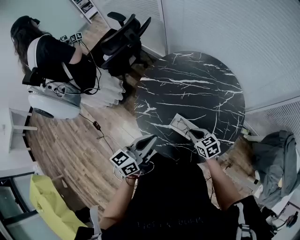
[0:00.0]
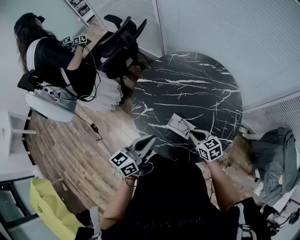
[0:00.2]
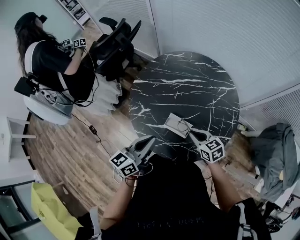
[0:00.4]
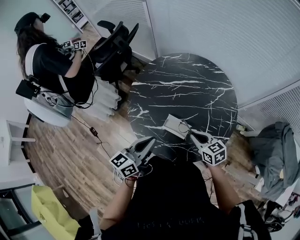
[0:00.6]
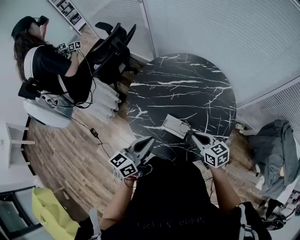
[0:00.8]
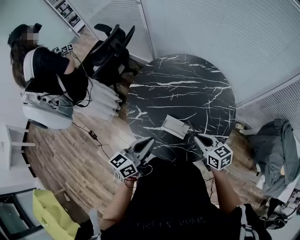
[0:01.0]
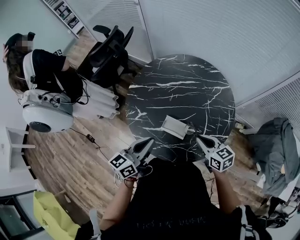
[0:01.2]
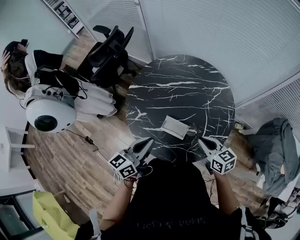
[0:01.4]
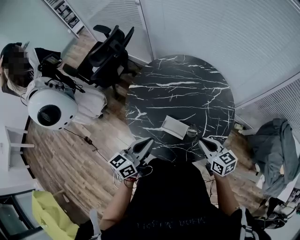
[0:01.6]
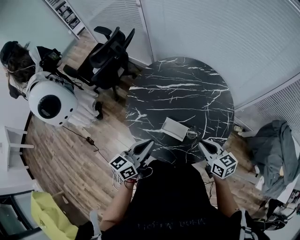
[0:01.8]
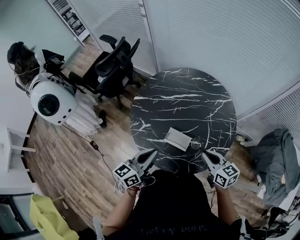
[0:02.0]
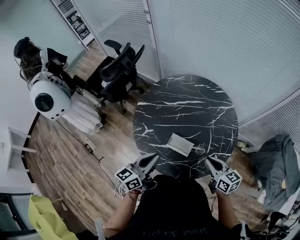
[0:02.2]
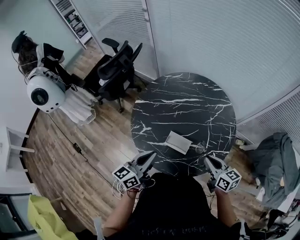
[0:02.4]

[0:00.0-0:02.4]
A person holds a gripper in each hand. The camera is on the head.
0:00.0 to 0:01.2: The right gripper goes approximately 10 cm upward and to the right, and swivels about 20 degrees.
0:01.2 to 0:02.4: The grippers stay close to where they were, moving slightly.

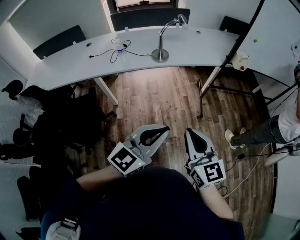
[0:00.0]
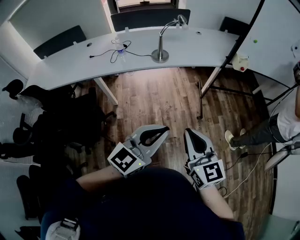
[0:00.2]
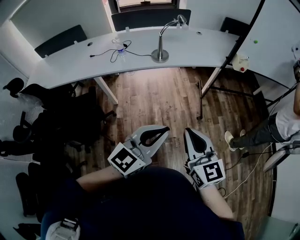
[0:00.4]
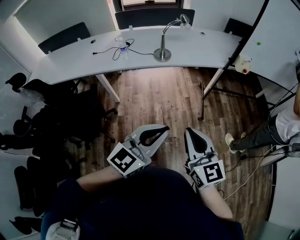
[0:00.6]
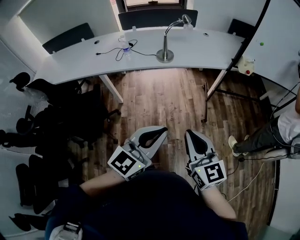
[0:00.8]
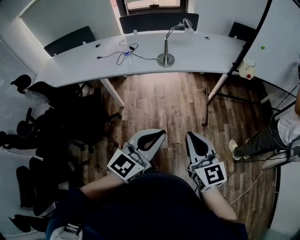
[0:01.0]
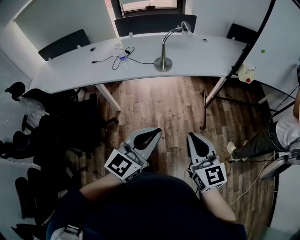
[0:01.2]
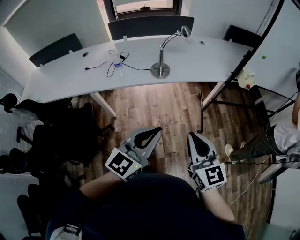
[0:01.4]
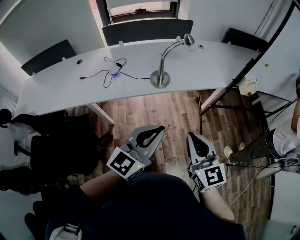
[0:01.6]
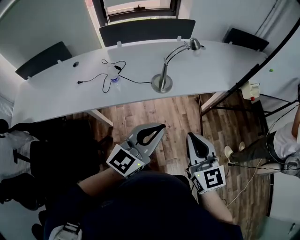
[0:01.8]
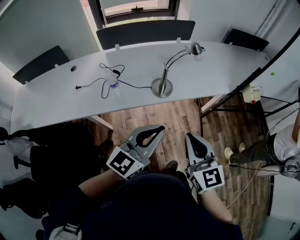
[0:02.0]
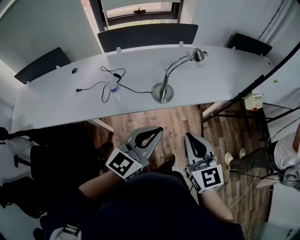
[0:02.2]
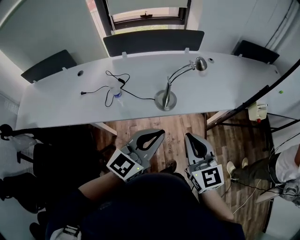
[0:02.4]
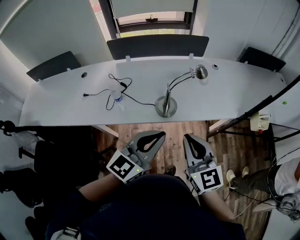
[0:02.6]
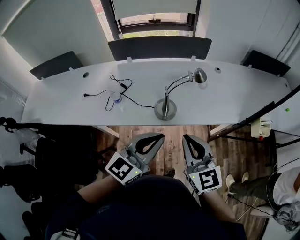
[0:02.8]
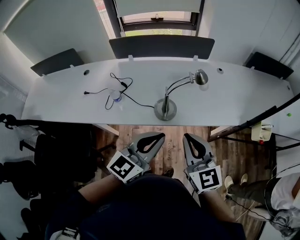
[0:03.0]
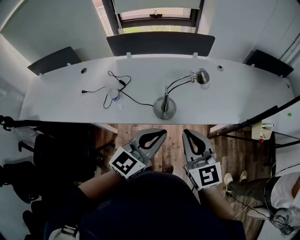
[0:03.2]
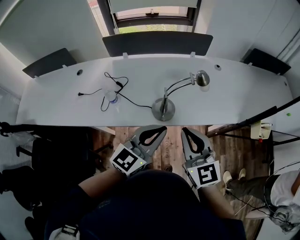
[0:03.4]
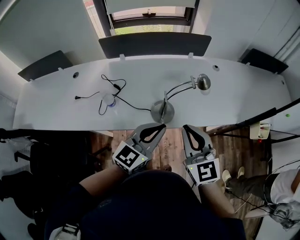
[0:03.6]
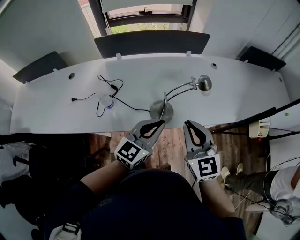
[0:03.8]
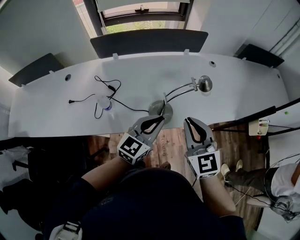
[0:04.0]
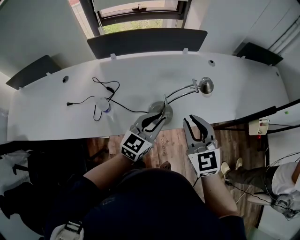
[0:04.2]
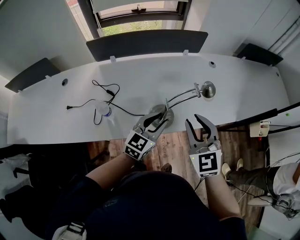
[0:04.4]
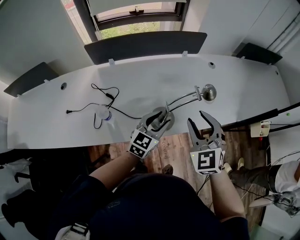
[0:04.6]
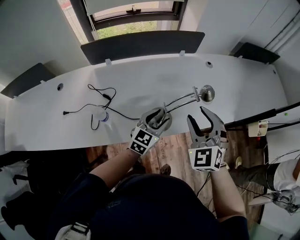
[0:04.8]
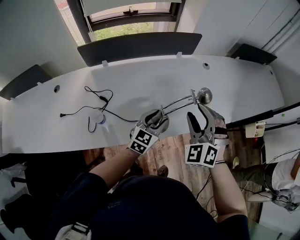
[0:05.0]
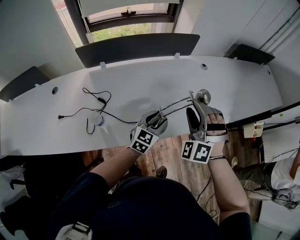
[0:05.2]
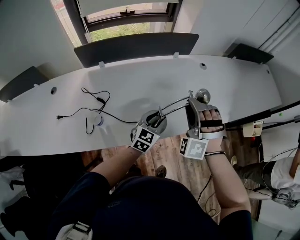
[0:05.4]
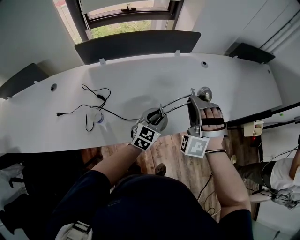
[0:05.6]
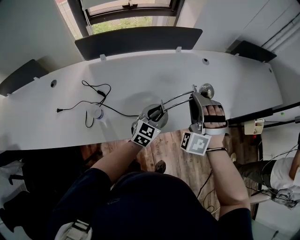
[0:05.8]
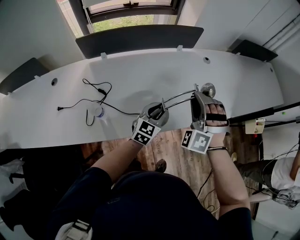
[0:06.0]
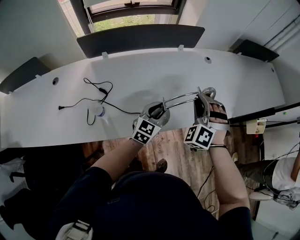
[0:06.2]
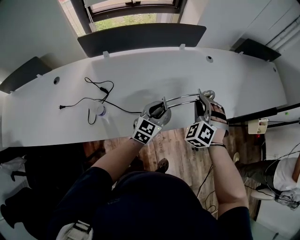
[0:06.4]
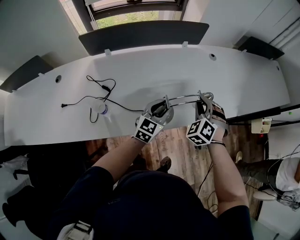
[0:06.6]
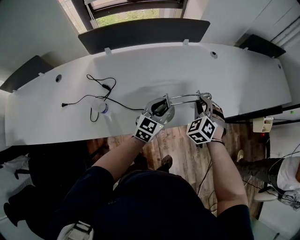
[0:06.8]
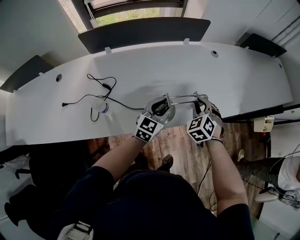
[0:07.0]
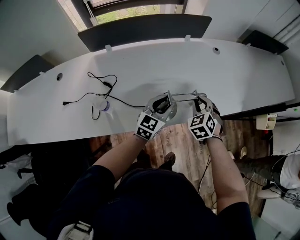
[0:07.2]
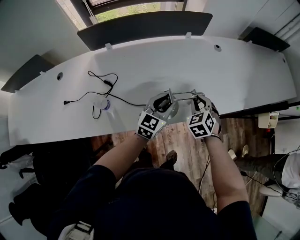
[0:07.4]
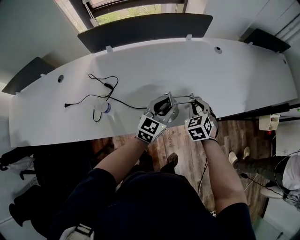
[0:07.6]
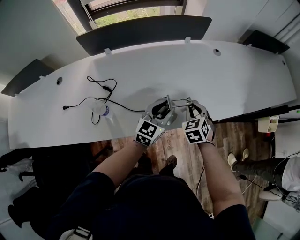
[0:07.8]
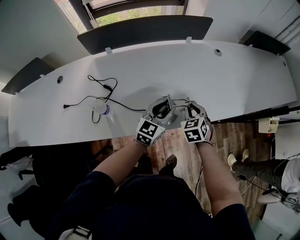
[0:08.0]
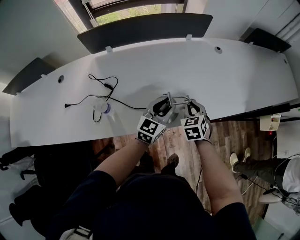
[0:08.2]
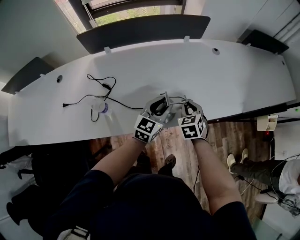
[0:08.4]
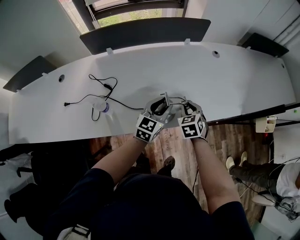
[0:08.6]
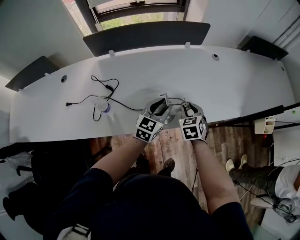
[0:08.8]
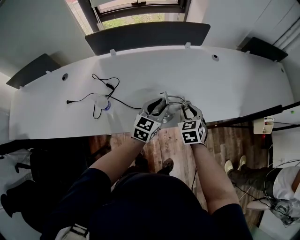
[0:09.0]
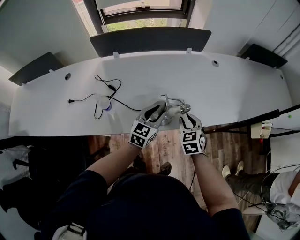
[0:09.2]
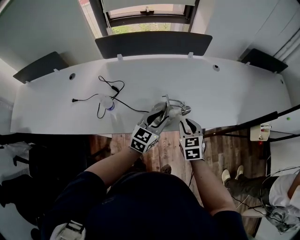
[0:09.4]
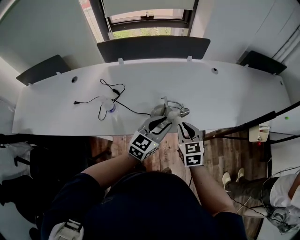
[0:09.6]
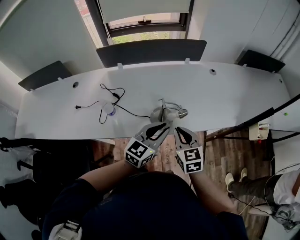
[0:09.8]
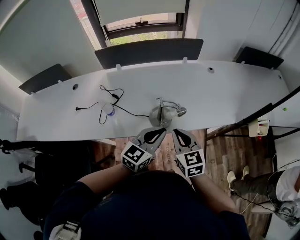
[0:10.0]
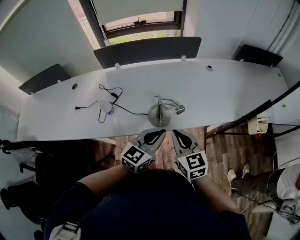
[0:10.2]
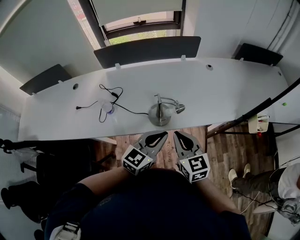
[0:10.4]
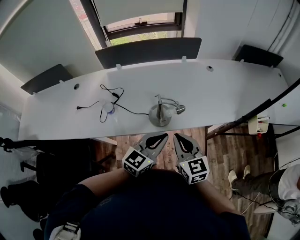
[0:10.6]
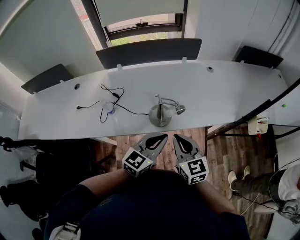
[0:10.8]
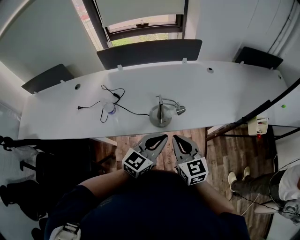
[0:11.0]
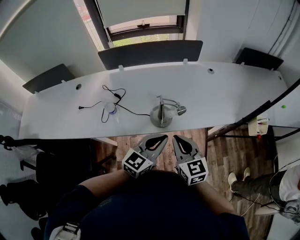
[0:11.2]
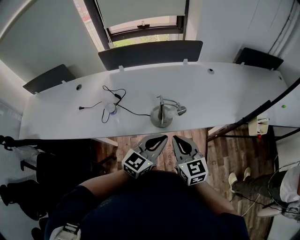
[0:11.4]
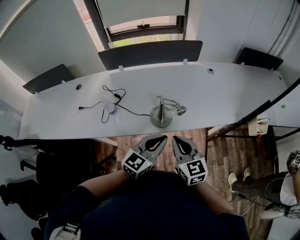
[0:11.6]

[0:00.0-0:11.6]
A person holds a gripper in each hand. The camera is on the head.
0:00.0 to 0:01.4: Both grippers move forward, approximately 15 cm.
0:01.4 to 0:02.8: Both grippers travel together forward, about 30 cm.
0:02.8 to 0:04.4: The right gripper travels forward by about 15 cm, swivels roughly 20 degrees, and opens; the left gripper is displaced forward and downward by approximately 25 cm, and opens up.
0:04.4 to 0:05.8: The left gripper travels forward and downward by roughly 10 cm. The right gripper is displaced forward by about 10 cm, rotates around the line of its fingers by some 60 degrees, counterclockwise from behind, and opens, then closes again.
0:05.8 to 0:07.2: The right gripper goes some 15 cm downward, and rolls clockwise, seen from behind, by approximately 40 degrees.
0:07.2 to 0:08.8: The right gripper changes its angle by roughly 20 degrees.
0:08.8 to 0:10.2: Both grippers travel together backward and upward, roughly 20 cm. The right gripper swivels about 40 degrees, and closes up. Meanwhile the left gripper closes its fingers.
0:10.2 to 0:11.6: The grippers make only small movements.

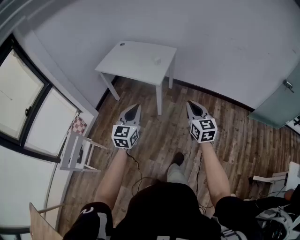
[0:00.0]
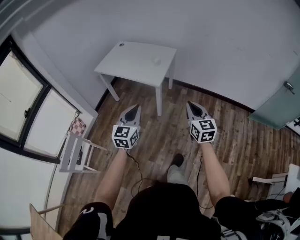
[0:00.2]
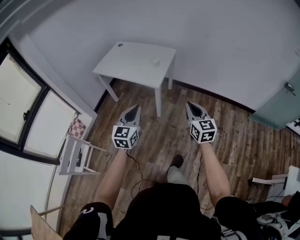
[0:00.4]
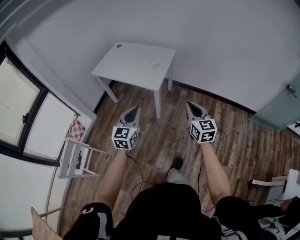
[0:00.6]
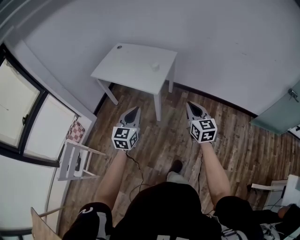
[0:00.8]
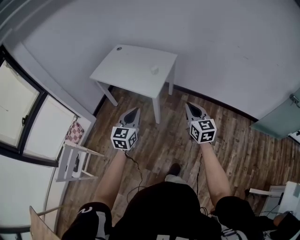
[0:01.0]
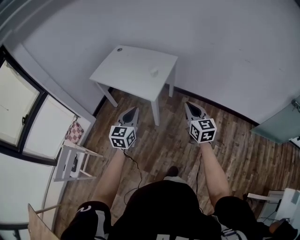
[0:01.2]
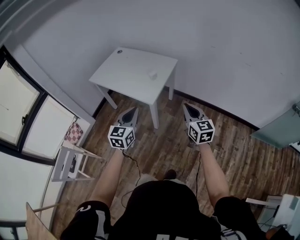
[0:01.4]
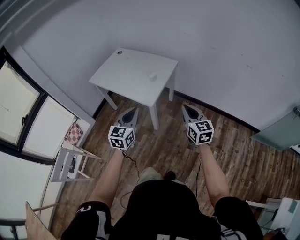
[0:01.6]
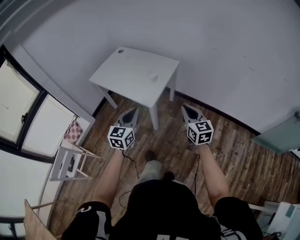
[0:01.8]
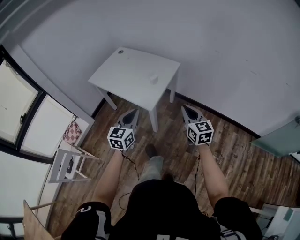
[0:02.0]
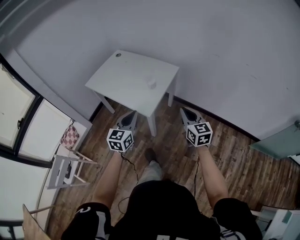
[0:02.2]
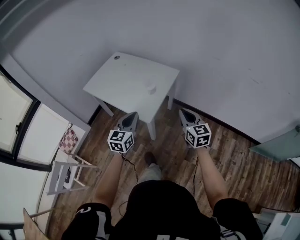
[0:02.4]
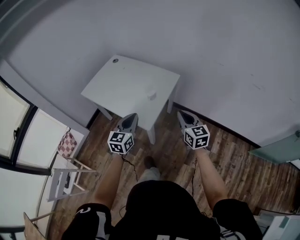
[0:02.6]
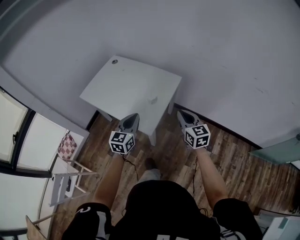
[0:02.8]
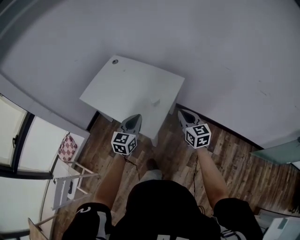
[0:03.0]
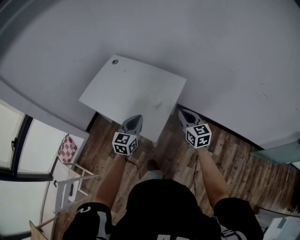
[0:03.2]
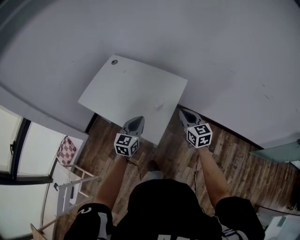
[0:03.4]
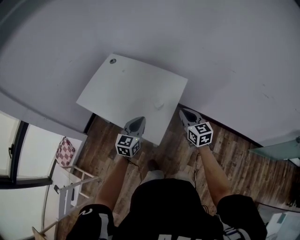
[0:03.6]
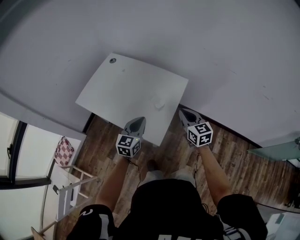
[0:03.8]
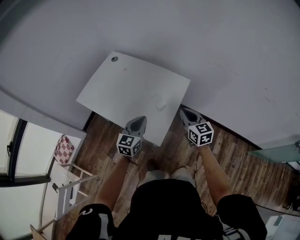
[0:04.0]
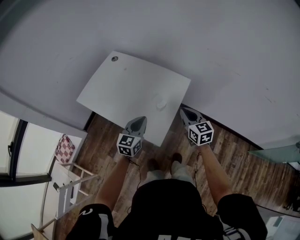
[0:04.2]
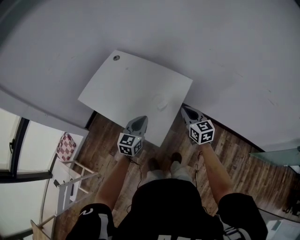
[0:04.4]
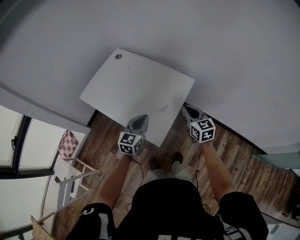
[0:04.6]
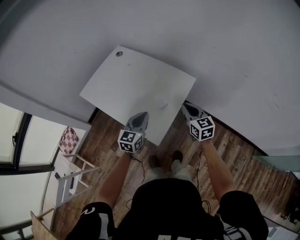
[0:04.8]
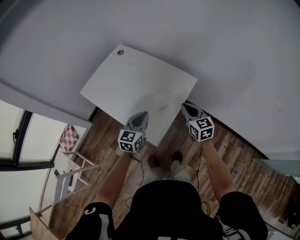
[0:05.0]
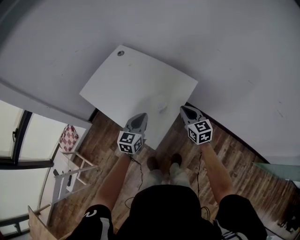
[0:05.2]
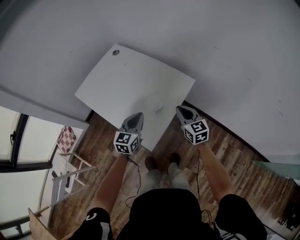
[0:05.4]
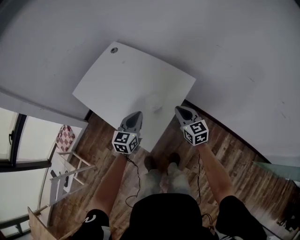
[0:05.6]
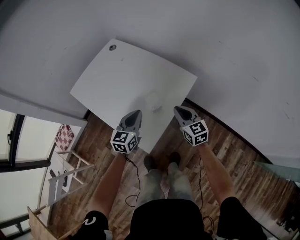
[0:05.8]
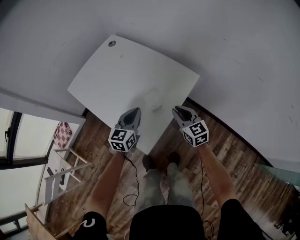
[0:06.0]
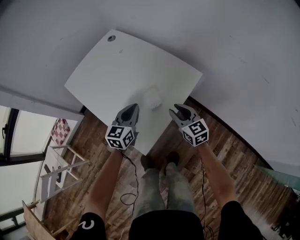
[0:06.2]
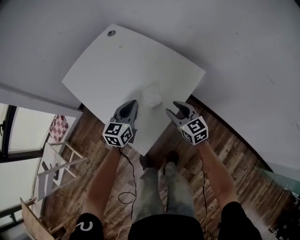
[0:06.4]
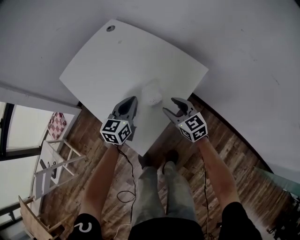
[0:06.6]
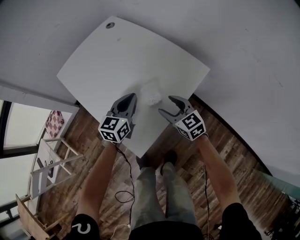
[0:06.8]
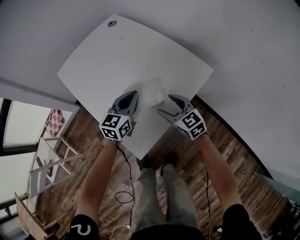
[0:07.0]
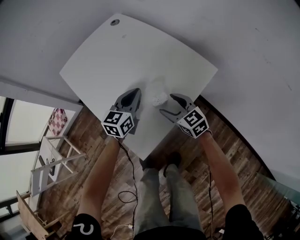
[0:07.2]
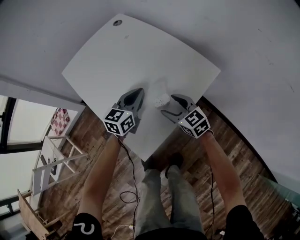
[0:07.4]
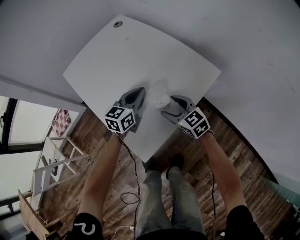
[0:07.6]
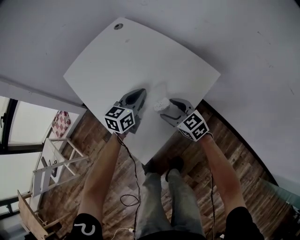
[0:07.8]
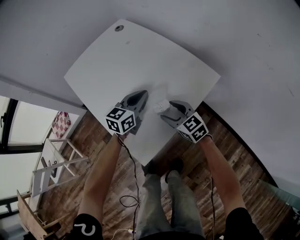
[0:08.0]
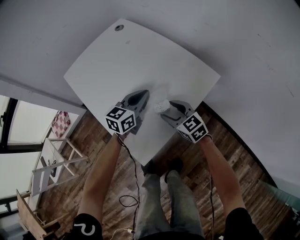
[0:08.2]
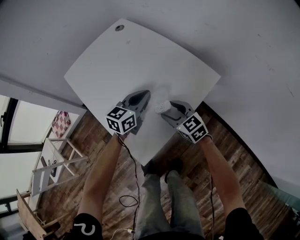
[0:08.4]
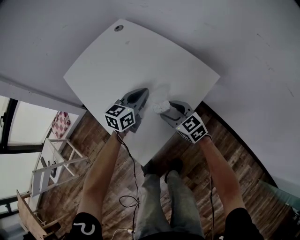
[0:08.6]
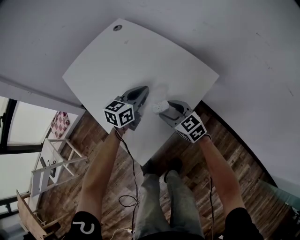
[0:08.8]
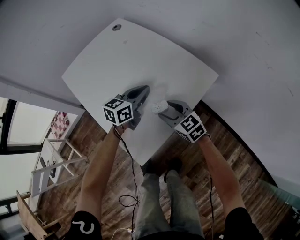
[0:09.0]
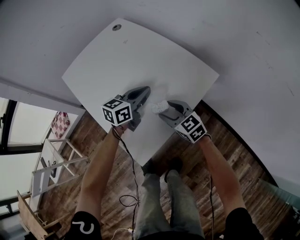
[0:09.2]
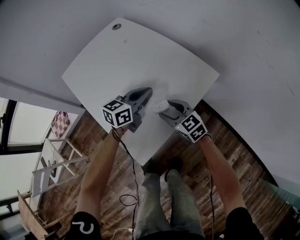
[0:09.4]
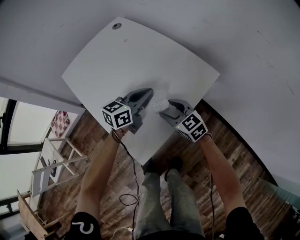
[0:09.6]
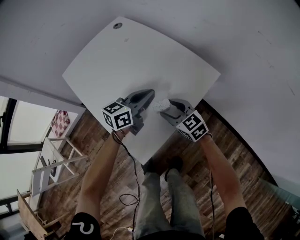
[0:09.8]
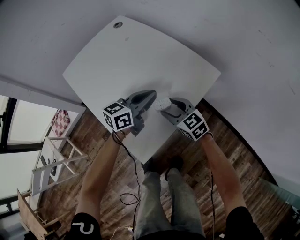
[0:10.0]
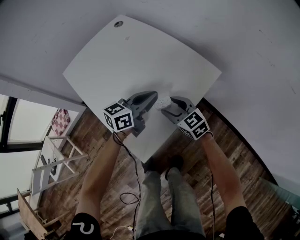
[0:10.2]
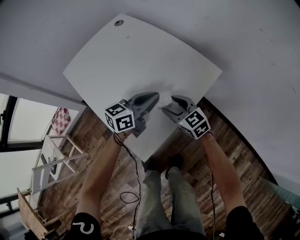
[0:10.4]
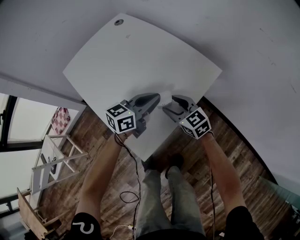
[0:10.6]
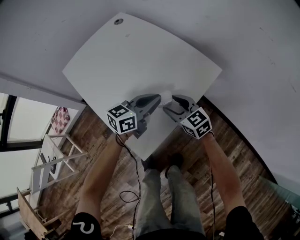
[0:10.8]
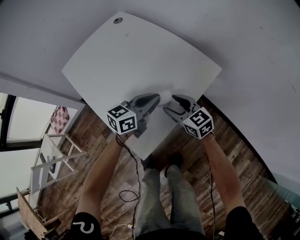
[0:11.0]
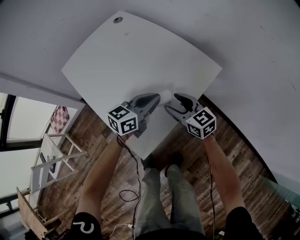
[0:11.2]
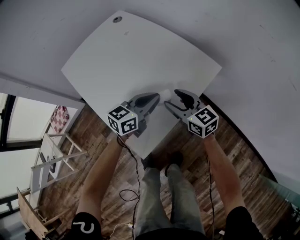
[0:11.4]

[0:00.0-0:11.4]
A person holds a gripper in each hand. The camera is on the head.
0:00.0 to 0:01.4: The left gripper shifts roughly 20 cm forward and to the right. The right gripper heads forward, covering about 20 cm.
0:01.4 to 0:02.8: The grippers both shift forward by about 25 cm.
0:02.8 to 0:04.2: The left gripper moves forward and downward, roughly 10 cm; the right gripper shifts approximately 15 cm forward and to the left.
0:04.2 to 0:05.6: The right gripper heads downward and forward, covering approximately 10 cm; the left gripper moves forward and downward, some 10 cm.
0:05.6 to 0:07.2: The right gripper travels downward by some 20 cm, turns by approximately 30 degrees, and opens. Meanwhile the left gripper moves downward and forward, about 15 cm.
0:07.2 to 0:08.6: The grippers make only small movements.
0:08.6 to 0:10.0: The left gripper shifts by about 5 cm.
0:10.0 to 0:11.4: The right gripper changes place by roughly 5 cm.
